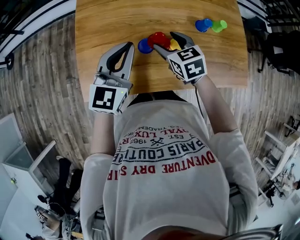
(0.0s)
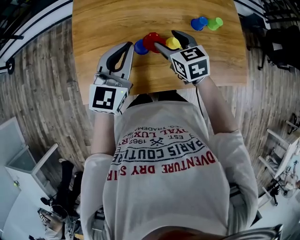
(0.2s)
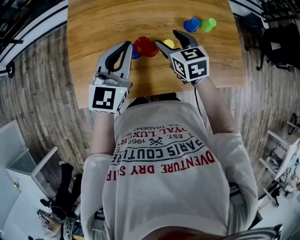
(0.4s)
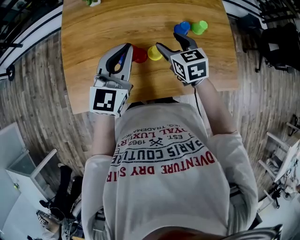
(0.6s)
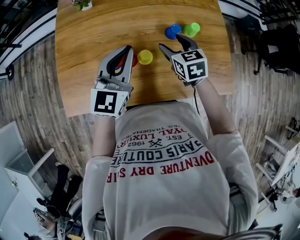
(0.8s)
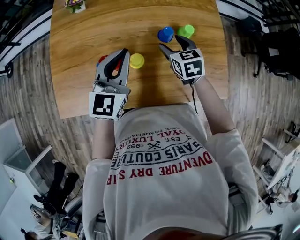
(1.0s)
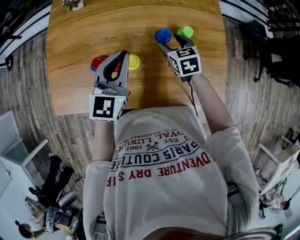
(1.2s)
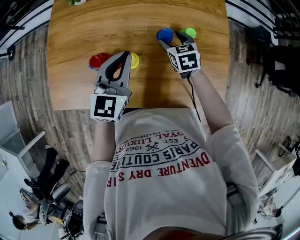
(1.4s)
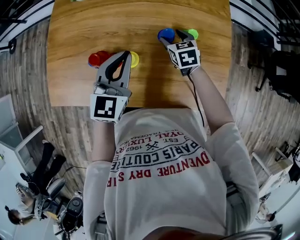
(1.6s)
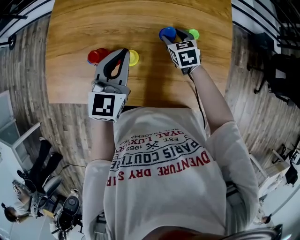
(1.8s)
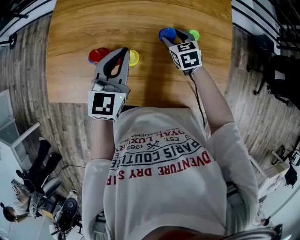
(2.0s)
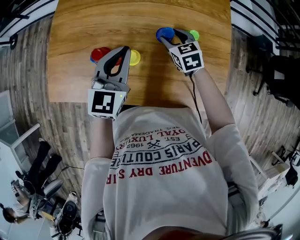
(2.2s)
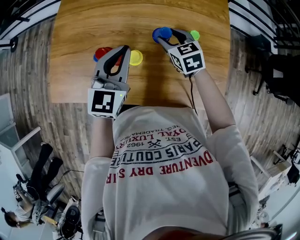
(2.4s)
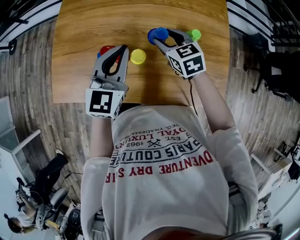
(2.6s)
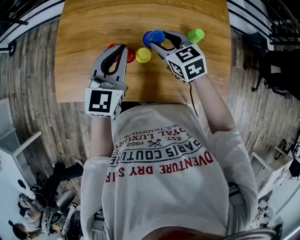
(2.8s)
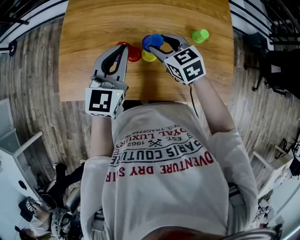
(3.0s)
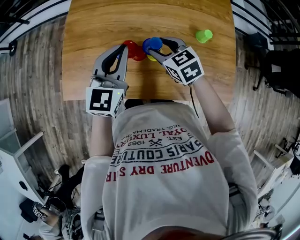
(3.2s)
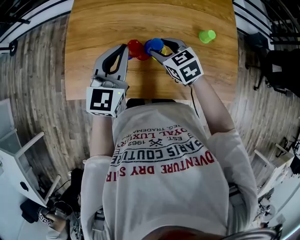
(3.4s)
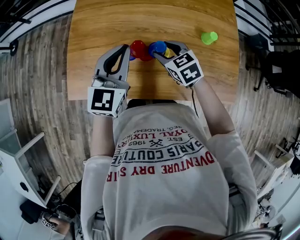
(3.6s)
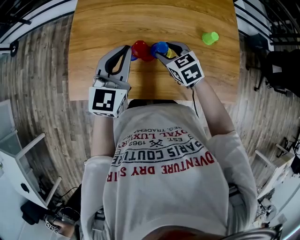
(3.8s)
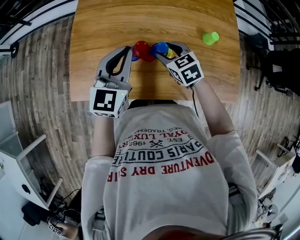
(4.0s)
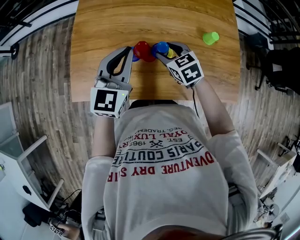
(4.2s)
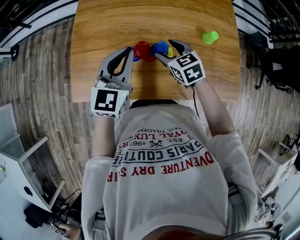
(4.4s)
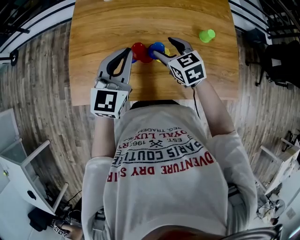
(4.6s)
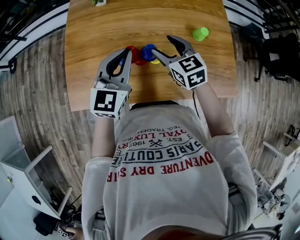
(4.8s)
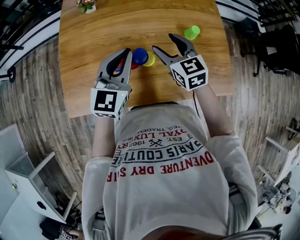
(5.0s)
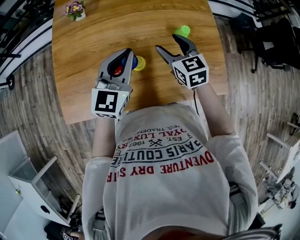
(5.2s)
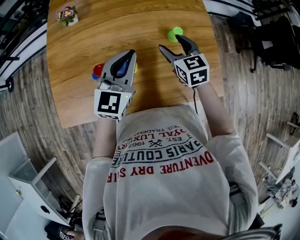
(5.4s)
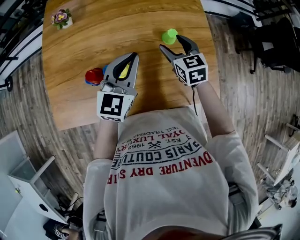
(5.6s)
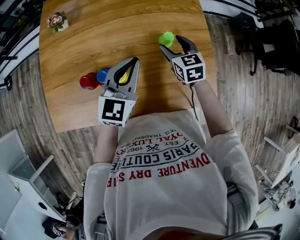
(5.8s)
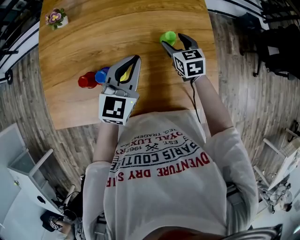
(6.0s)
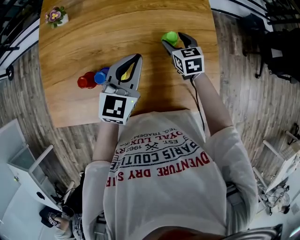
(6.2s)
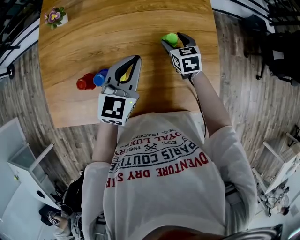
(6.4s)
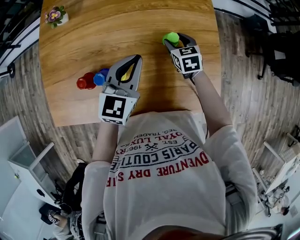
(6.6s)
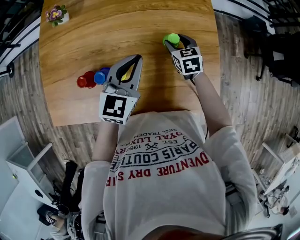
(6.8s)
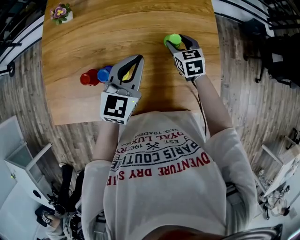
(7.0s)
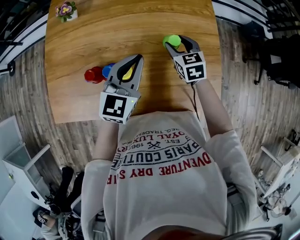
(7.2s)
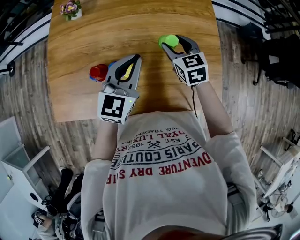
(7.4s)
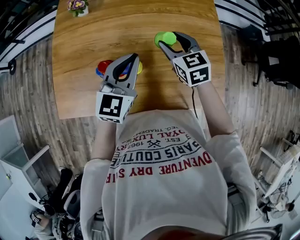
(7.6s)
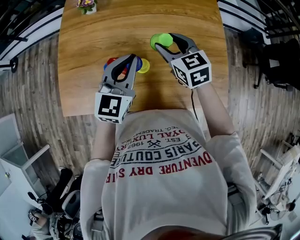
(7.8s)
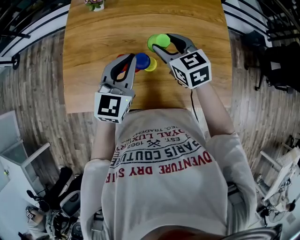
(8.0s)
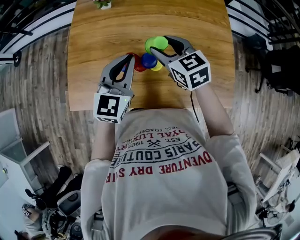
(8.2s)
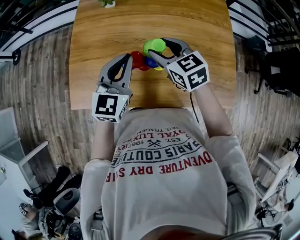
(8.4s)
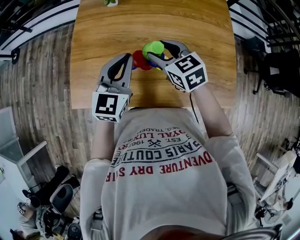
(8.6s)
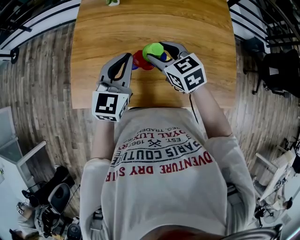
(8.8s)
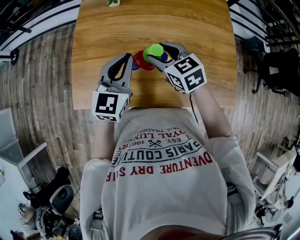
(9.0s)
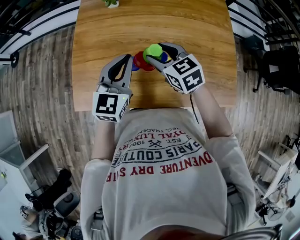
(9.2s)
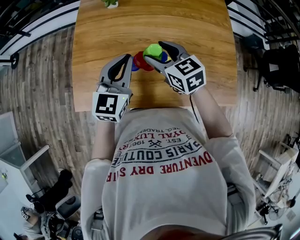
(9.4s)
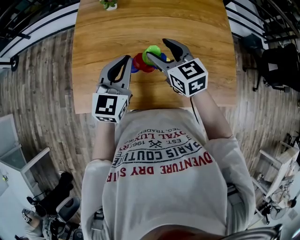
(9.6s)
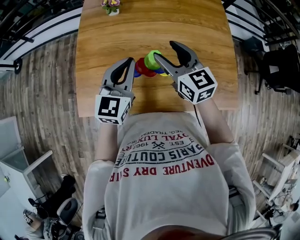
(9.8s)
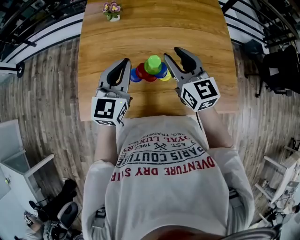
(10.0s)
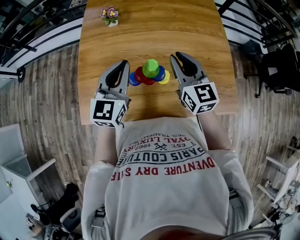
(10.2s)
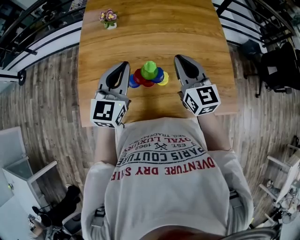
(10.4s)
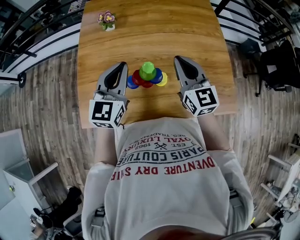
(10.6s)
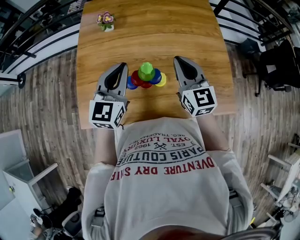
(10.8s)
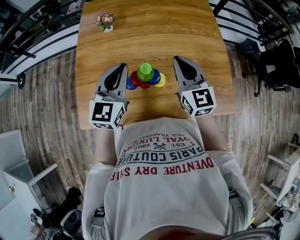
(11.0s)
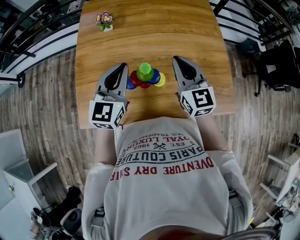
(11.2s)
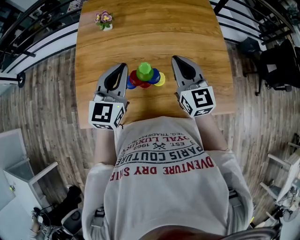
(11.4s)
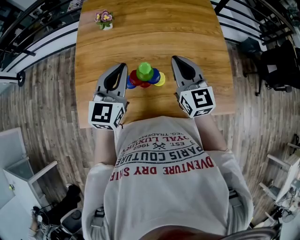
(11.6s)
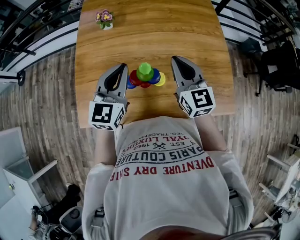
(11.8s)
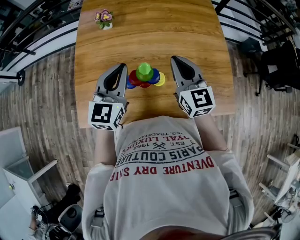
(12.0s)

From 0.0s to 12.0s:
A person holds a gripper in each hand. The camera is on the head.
From 0.0s to 1.6s: The left gripper shifts some 20 cm to the right. Meanwhile the right gripper heads to the right, forward and downward, covering about 30 cm.
From 1.6s to 3.0s: The left gripper travels to the left by approximately 10 cm; the right gripper shifts about 20 cm to the left, upward and backward.
From 3.0s to 4.4s: The right gripper moves approximately 5 cm. Meanwhile the left gripper goes some 5 cm to the left.
From 4.4s to 6.0s: The left gripper is displaced to the right by some 25 cm; the right gripper heads to the right and forward, covering about 30 cm, and changes its angle by roughly 20 degrees.
From 6.0s to 7.6s: The left gripper heads to the left, covering approximately 10 cm, while the right gripper travels to the left and upward by approximately 15 cm.
From 7.6s to 9.0s: The grippers both shift to the left by about 15 cm.
From 9.0s to 10.4s: The right gripper shifts approximately 15 cm to the right and upward, turns by about 40 degrees, and closes.
From 10.4s to 12.0s: There are only small adjustments of the grippers.

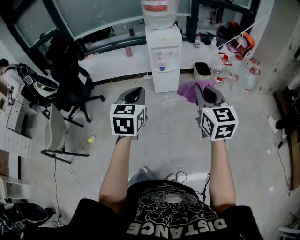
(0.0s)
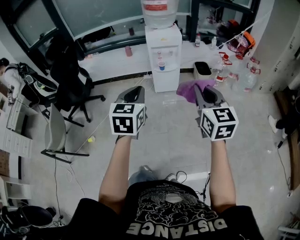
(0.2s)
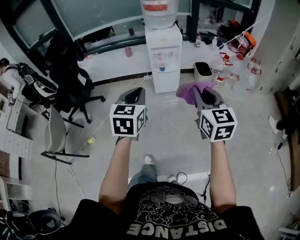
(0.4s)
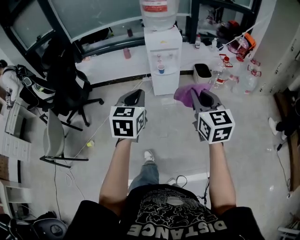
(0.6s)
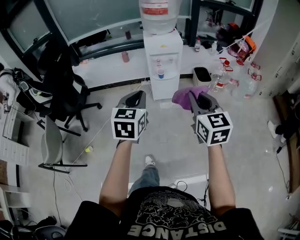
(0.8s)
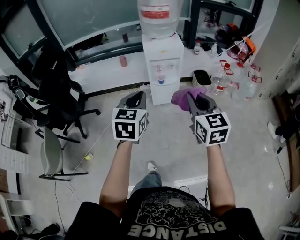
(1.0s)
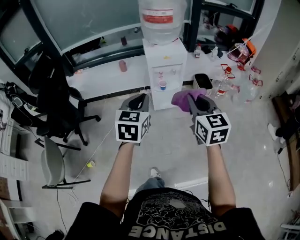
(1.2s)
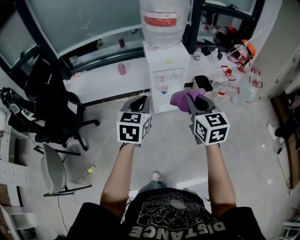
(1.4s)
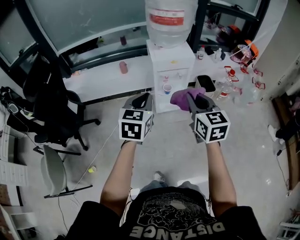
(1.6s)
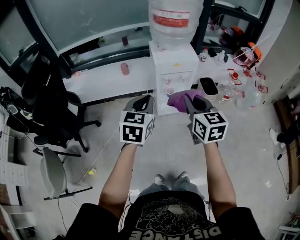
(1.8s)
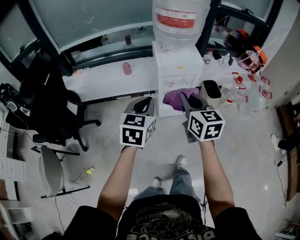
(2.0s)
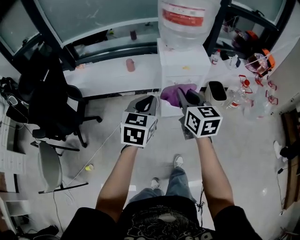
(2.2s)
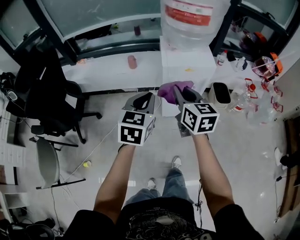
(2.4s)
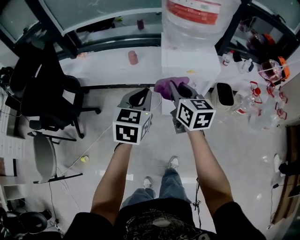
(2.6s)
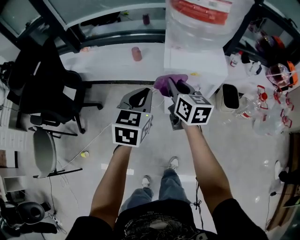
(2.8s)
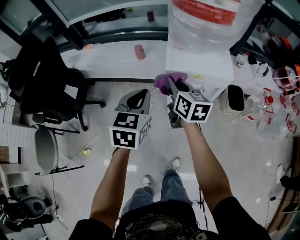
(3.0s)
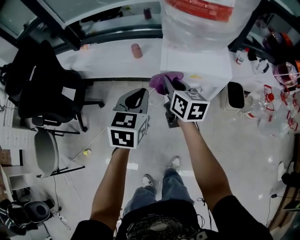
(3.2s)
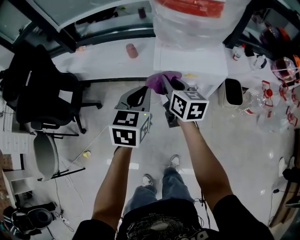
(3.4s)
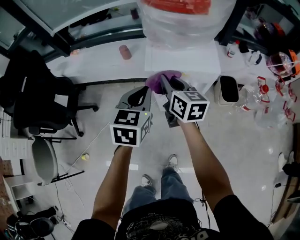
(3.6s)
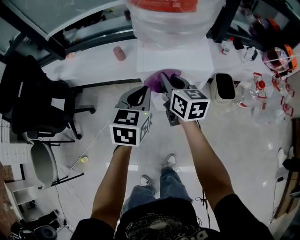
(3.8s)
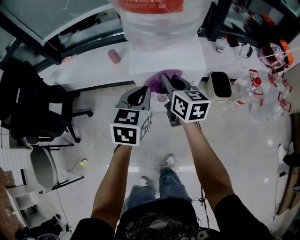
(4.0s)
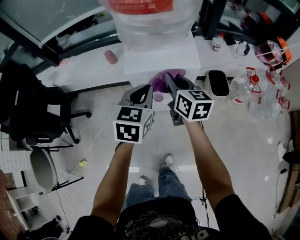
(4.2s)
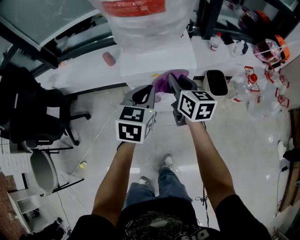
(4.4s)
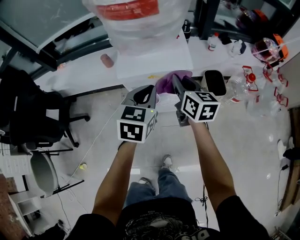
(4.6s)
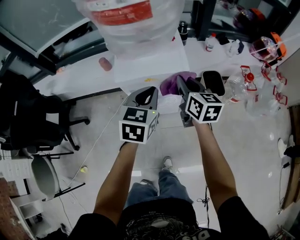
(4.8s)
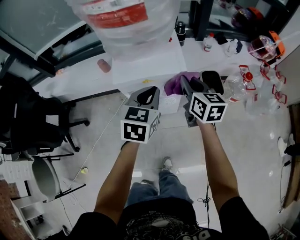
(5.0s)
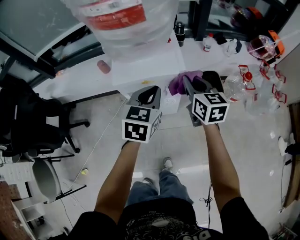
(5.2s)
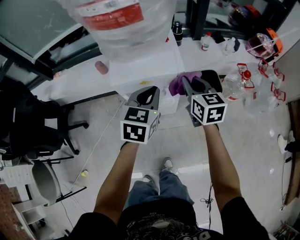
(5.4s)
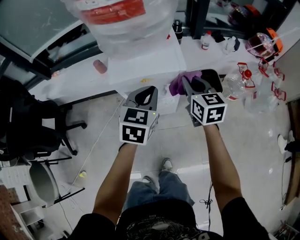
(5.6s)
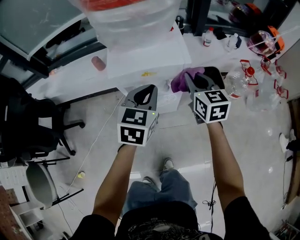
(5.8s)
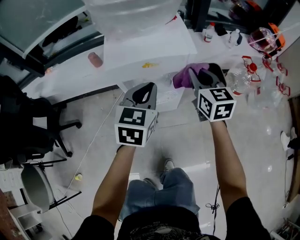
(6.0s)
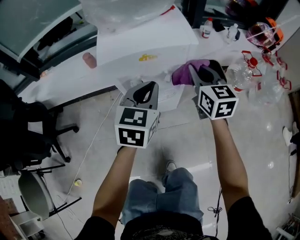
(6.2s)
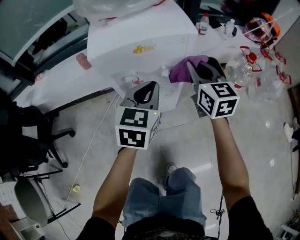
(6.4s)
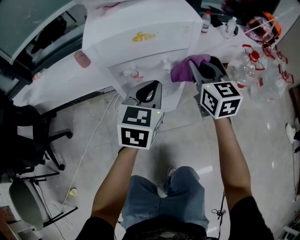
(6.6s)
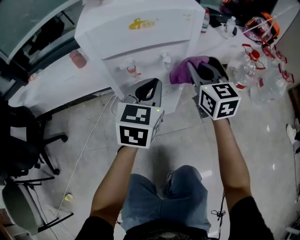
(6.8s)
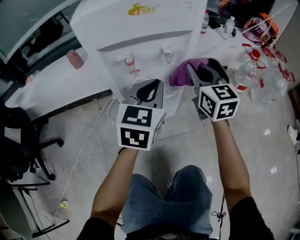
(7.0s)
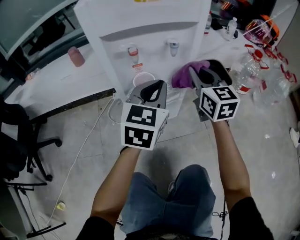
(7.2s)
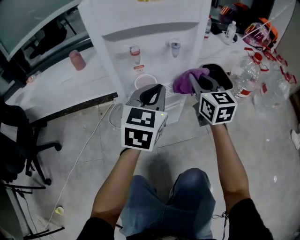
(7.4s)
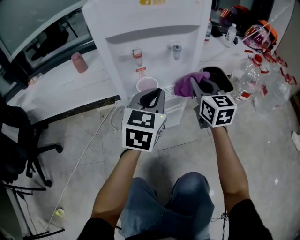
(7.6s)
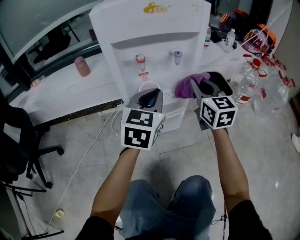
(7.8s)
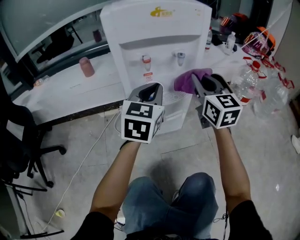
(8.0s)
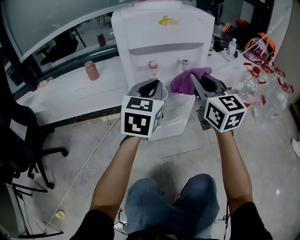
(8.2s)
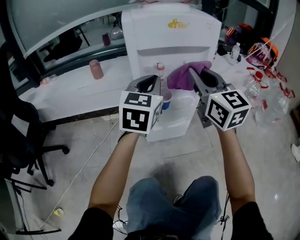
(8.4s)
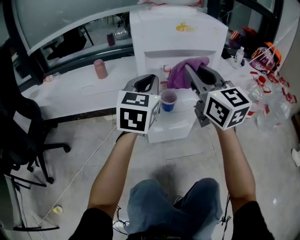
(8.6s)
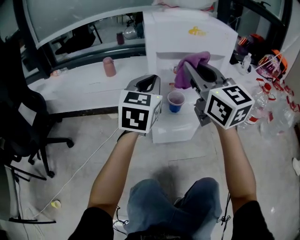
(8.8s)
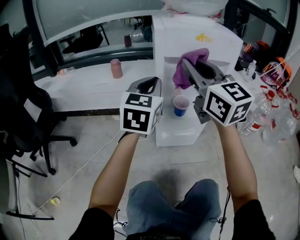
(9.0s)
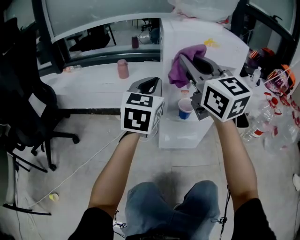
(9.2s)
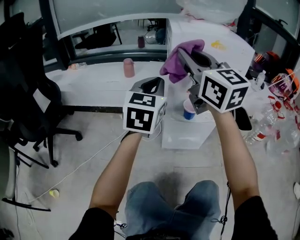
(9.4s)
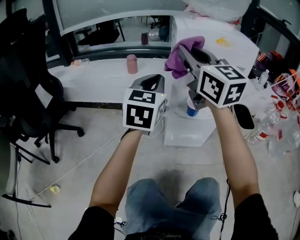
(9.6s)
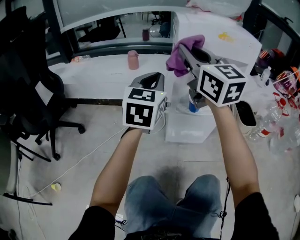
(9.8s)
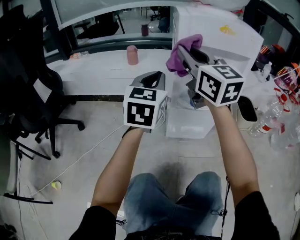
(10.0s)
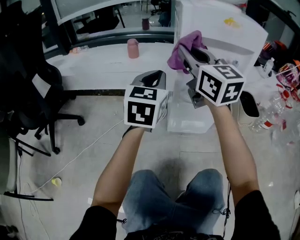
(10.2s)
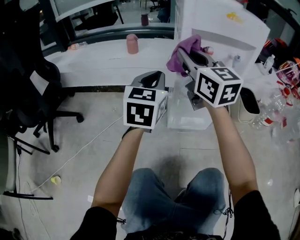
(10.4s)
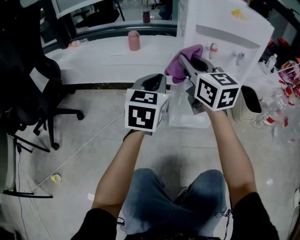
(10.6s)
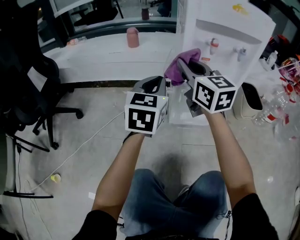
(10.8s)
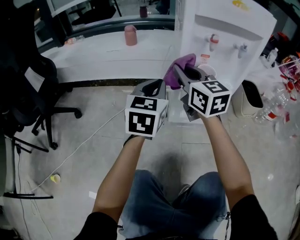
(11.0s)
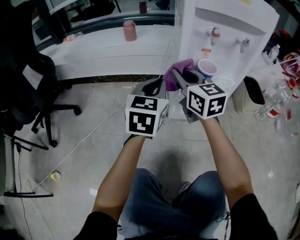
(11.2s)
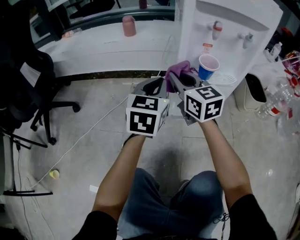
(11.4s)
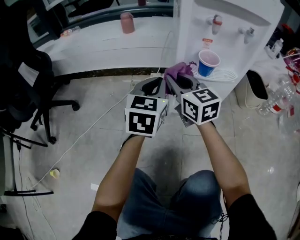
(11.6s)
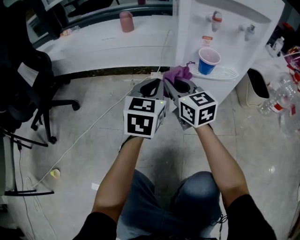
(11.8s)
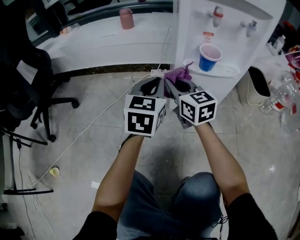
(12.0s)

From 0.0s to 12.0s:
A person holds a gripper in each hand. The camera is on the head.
From 0.0s to 1.6s: The left gripper is displaced forward by some 30 cm, while the right gripper heads forward and to the left, covering approximately 30 cm.
From 1.6s to 3.0s: The right gripper shifts approximately 35 cm forward and downward, and turns by about 30 degrees. The left gripper is displaced forward and downward by some 25 cm.
From 3.0s to 4.4s: The grippers both shift to the right by about 15 cm.
From 4.4s to 6.0s: The right gripper moves to the right and downward, roughly 10 cm, and swivels some 20 degrees. The left gripper is displaced downward by about 5 cm.
From 6.0s to 7.6s: Both grippers move downward, roughly 20 cm.
From 7.6s to 9.0s: The right gripper heads upward and to the left, covering some 30 cm, and rotates roughly 30 degrees. Meanwhile the left gripper goes approximately 20 cm to the left and upward.
From 9.0s to 10.4s: Both grippers travel together downward and to the left, roughly 10 cm.
From 10.4s to 12.0s: The left gripper goes some 15 cm downward; the right gripper is displaced downward by roughly 25 cm.
